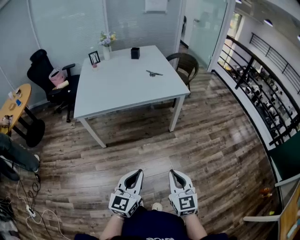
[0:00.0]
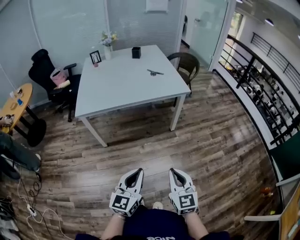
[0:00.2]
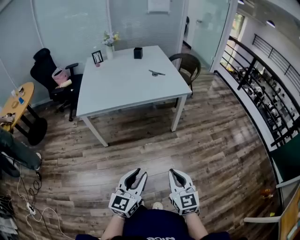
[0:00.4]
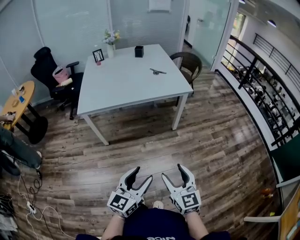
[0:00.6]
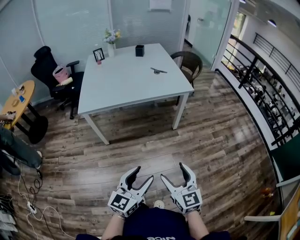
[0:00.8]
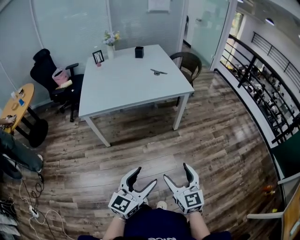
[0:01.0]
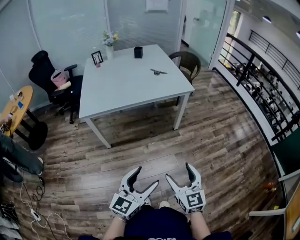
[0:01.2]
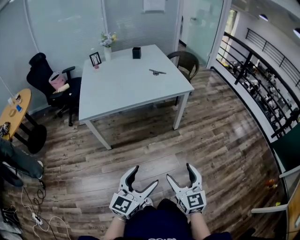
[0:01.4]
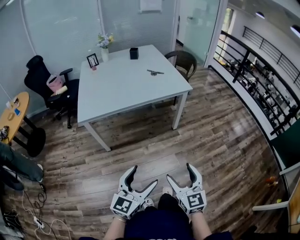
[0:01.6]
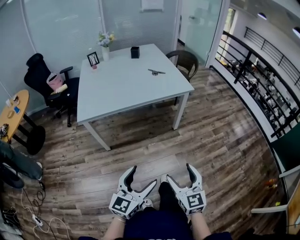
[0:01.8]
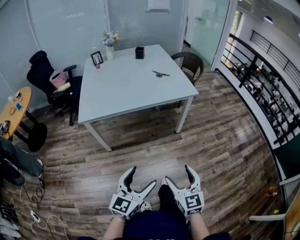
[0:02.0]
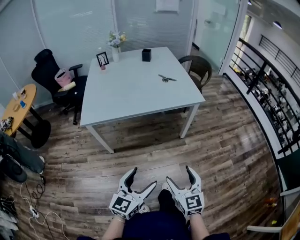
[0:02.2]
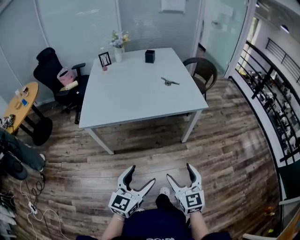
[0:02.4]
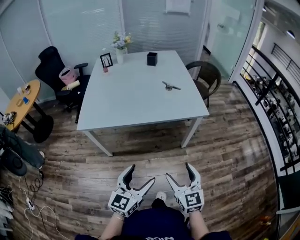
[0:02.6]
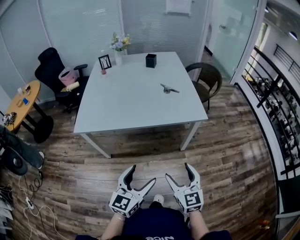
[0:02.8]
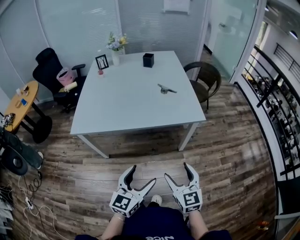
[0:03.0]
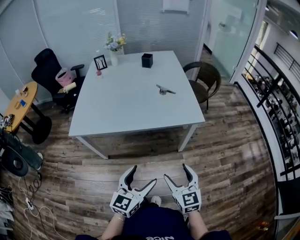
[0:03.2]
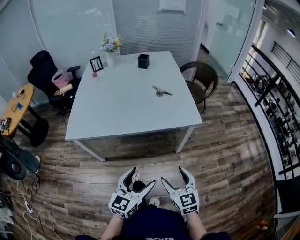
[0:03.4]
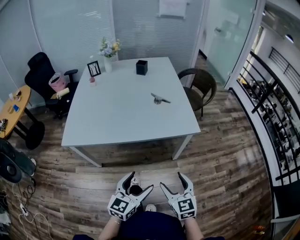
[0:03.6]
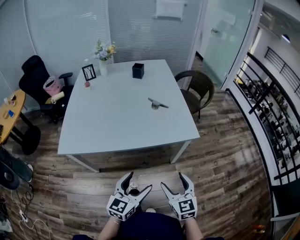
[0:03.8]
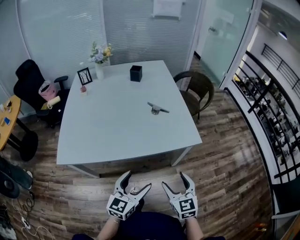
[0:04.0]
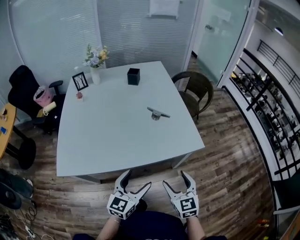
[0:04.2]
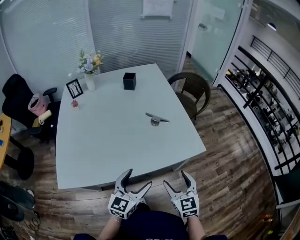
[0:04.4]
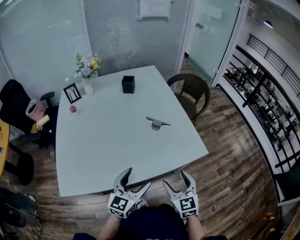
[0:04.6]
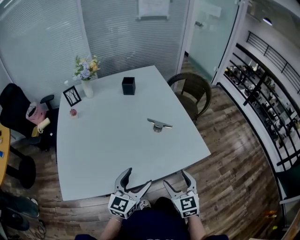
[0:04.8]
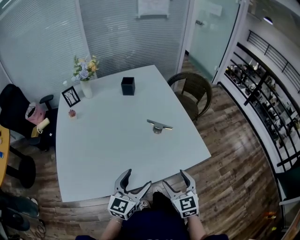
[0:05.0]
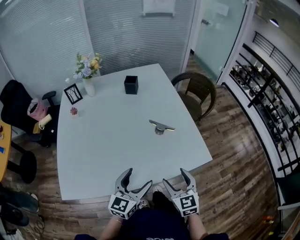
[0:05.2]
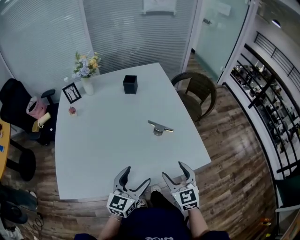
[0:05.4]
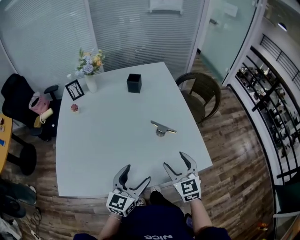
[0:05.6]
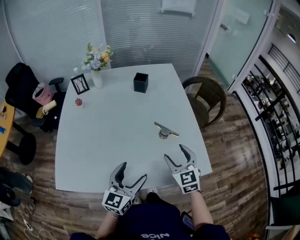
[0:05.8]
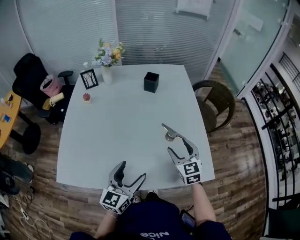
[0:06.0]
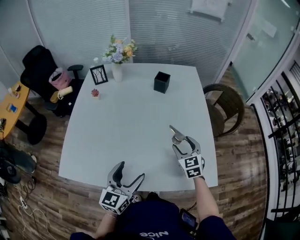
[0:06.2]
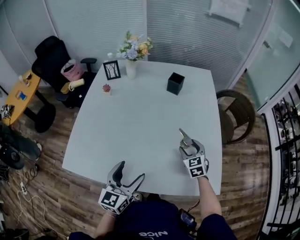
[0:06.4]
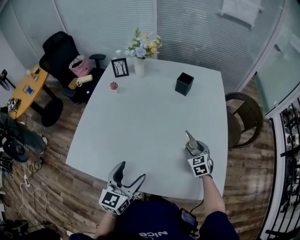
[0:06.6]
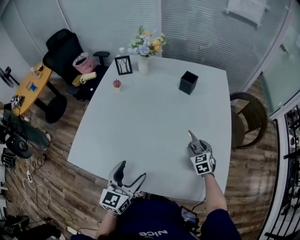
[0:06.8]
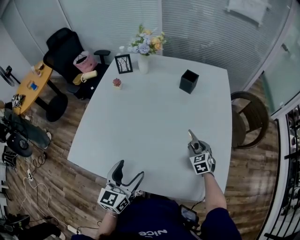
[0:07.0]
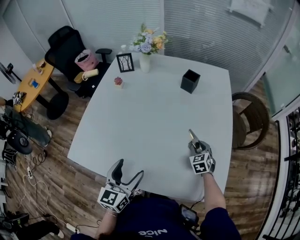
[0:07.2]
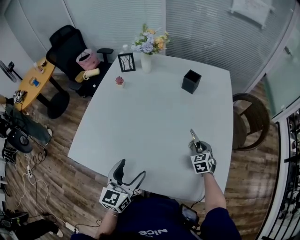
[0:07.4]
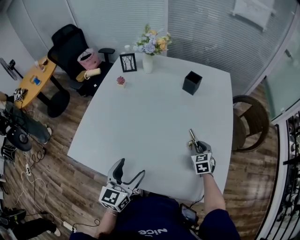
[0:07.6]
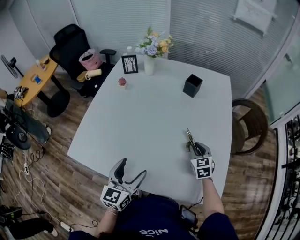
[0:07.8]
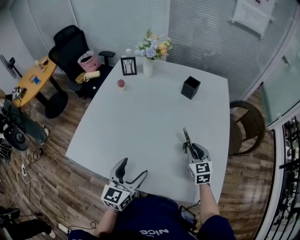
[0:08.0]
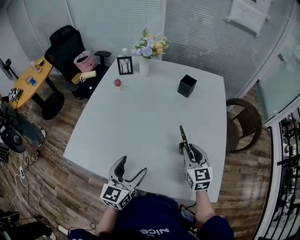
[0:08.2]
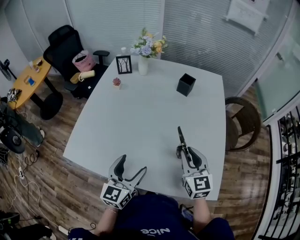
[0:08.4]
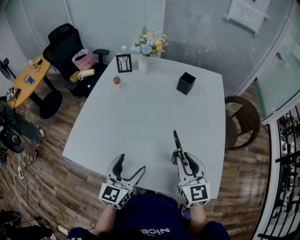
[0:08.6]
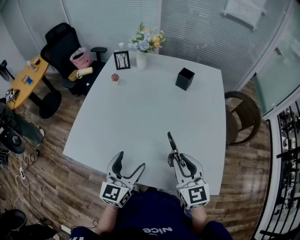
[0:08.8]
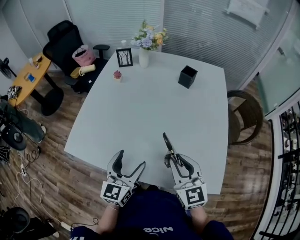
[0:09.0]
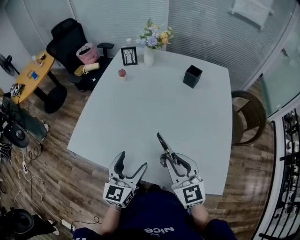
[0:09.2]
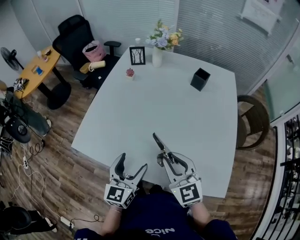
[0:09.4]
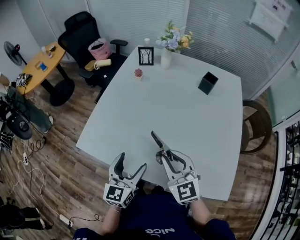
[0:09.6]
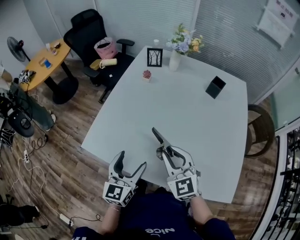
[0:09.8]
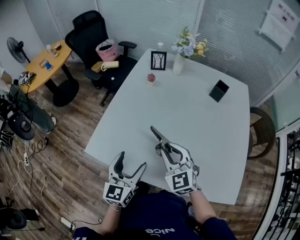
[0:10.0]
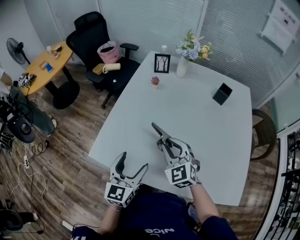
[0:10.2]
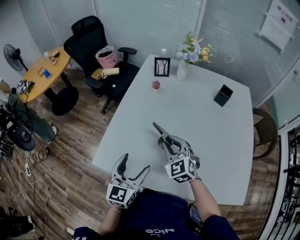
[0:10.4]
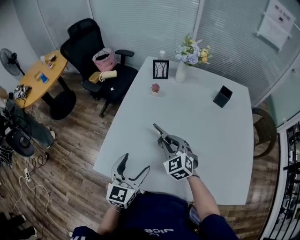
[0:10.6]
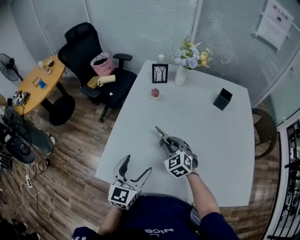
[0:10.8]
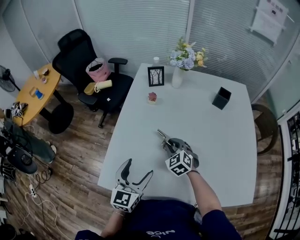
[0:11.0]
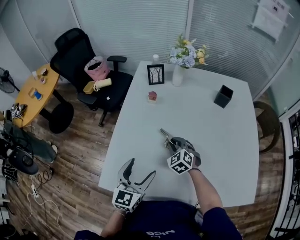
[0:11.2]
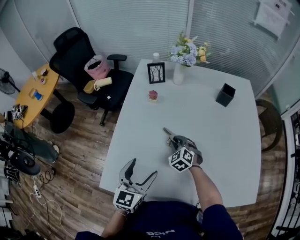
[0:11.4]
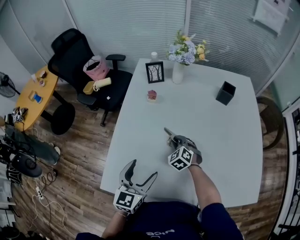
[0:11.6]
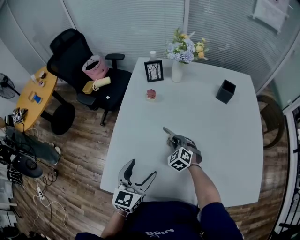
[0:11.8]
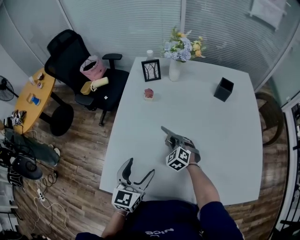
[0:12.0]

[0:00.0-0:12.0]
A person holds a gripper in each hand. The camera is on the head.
0:00.0 to 0:01.6: The right gripper opens; the left gripper opens its fingers.
0:01.6 to 0:03.0: The grippers both shift forward by some 25 cm.
0:03.0 to 0:04.4: Both grippers move forward, approximately 25 cm.
0:04.4 to 0:06.0: The right gripper is displaced forward by some 25 cm. Meanwhile the left gripper travels forward and to the left by roughly 15 cm.
0:06.0 to 0:07.6: The right gripper is displaced downward and forward by approximately 20 cm, and closes its fingers. Meanwhile the left gripper is displaced to the left by some 5 cm, and changes its angle by roughly 20 degrees.
0:07.6 to 0:09.0: The right gripper moves upward, backward and to the left, some 30 cm, and rotates roughly 30 degrees.
0:09.0 to 0:10.4: The right gripper is displaced to the left and forward by roughly 30 cm, and swivels about 30 degrees, while the left gripper is displaced to the left by about 20 cm.
0:10.4 to 0:12.0: The right gripper travels downward and forward by about 20 cm, and rotates some 20 degrees. Meanwhile the left gripper is displaced forward by approximately 10 cm.

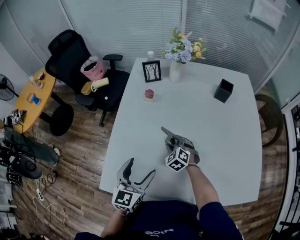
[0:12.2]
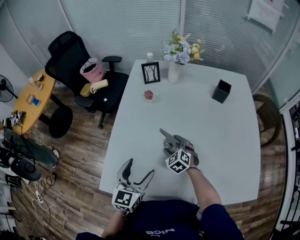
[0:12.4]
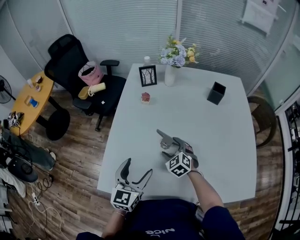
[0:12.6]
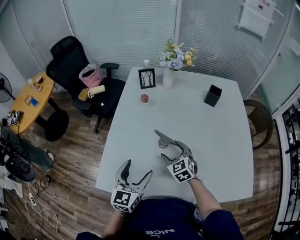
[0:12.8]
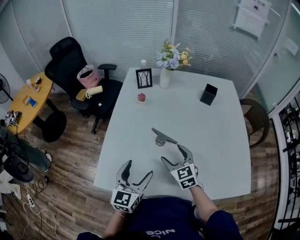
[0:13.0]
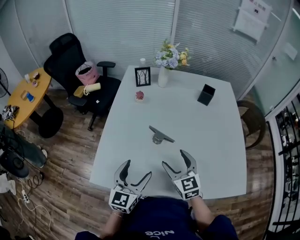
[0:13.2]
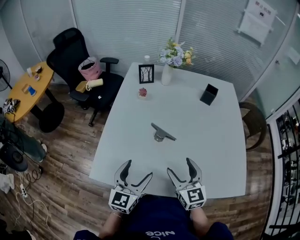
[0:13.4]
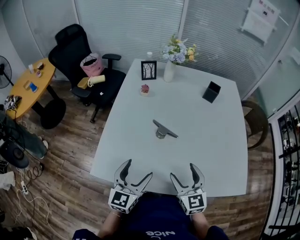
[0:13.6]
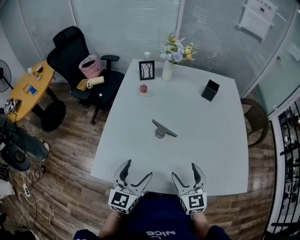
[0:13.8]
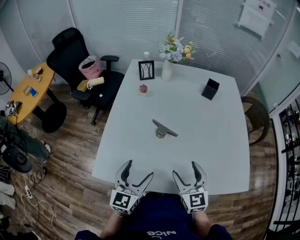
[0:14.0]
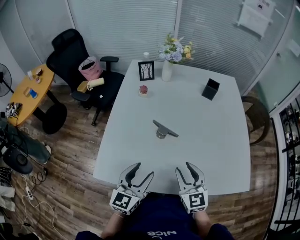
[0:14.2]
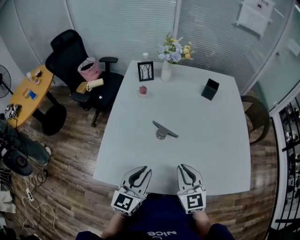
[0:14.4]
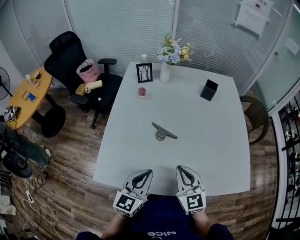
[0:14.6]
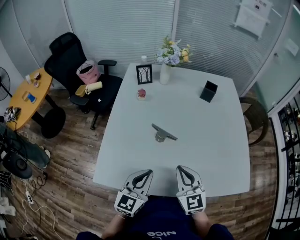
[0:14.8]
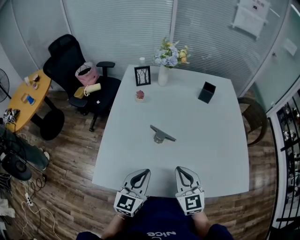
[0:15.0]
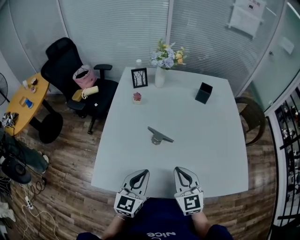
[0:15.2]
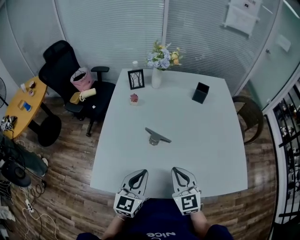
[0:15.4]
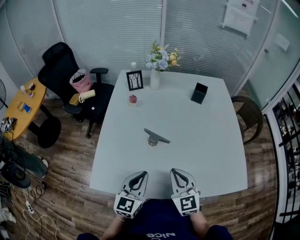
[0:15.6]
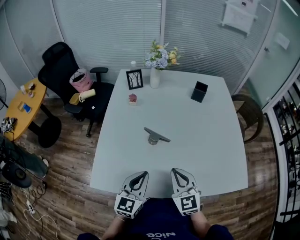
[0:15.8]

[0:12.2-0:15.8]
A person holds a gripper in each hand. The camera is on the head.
0:12.2 to 0:14.0: The right gripper moves backward and upward, approximately 30 cm, tips its fingers upward by about 30 degrees, and opens up. The left gripper travels backward by about 10 cm.
0:14.0 to 0:15.8: The right gripper closes its fingers. The left gripper closes.

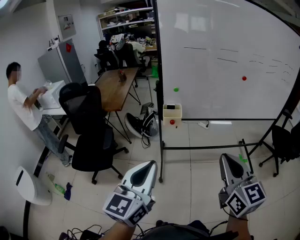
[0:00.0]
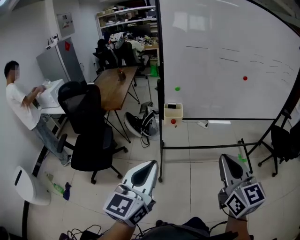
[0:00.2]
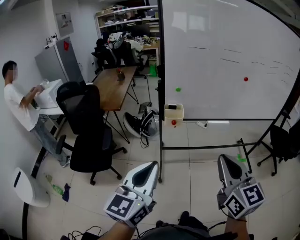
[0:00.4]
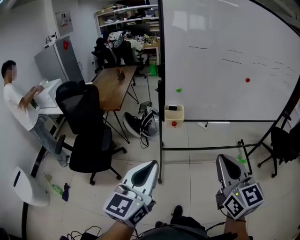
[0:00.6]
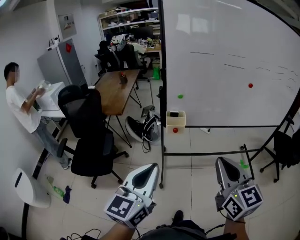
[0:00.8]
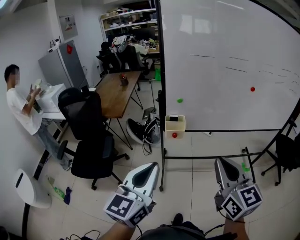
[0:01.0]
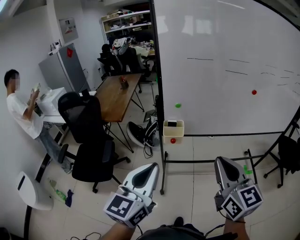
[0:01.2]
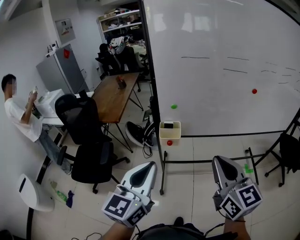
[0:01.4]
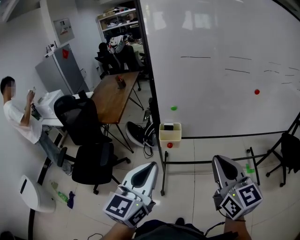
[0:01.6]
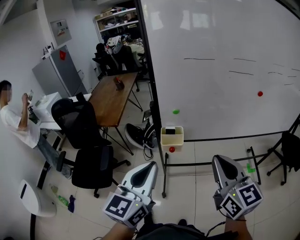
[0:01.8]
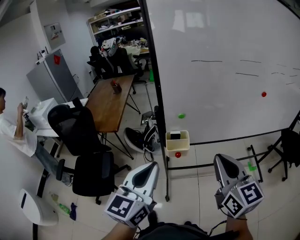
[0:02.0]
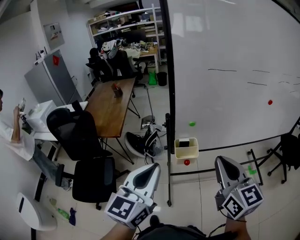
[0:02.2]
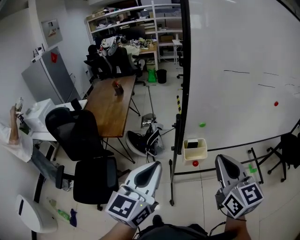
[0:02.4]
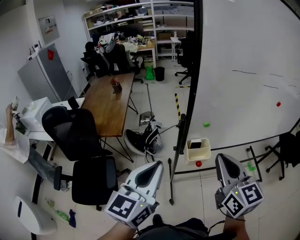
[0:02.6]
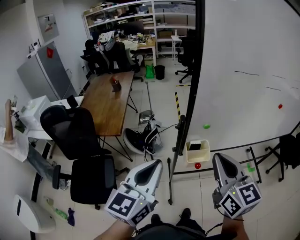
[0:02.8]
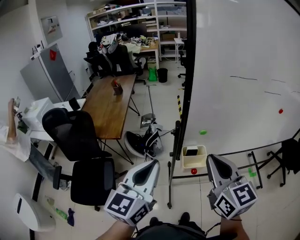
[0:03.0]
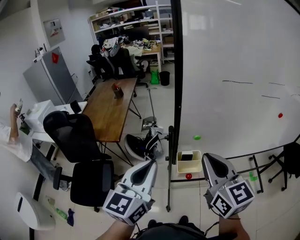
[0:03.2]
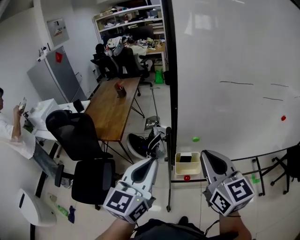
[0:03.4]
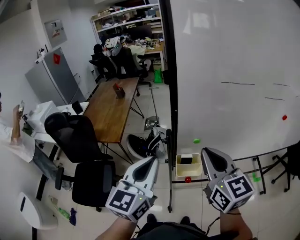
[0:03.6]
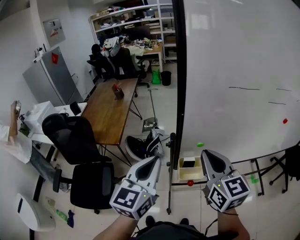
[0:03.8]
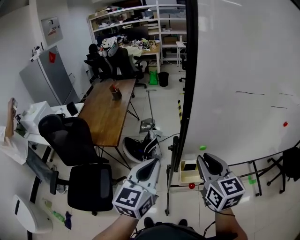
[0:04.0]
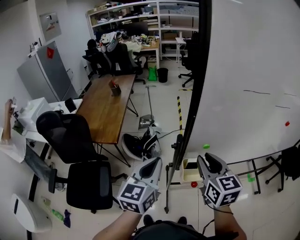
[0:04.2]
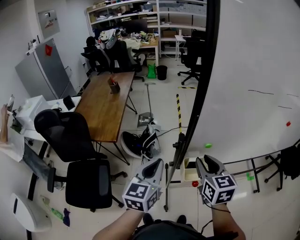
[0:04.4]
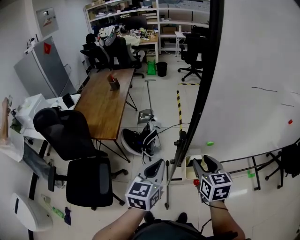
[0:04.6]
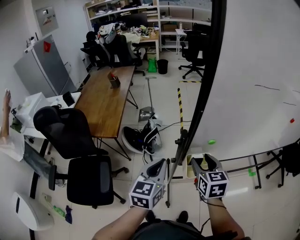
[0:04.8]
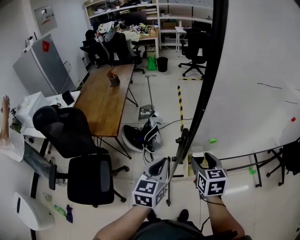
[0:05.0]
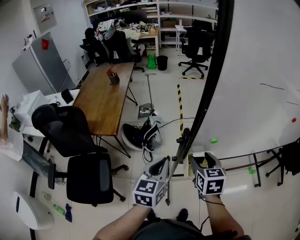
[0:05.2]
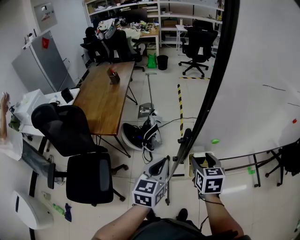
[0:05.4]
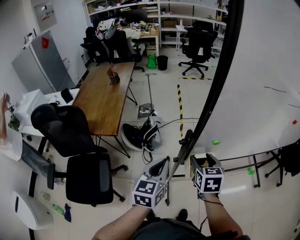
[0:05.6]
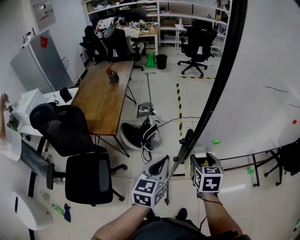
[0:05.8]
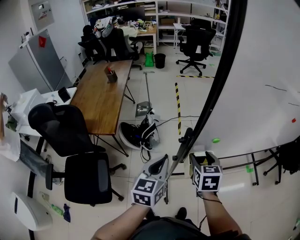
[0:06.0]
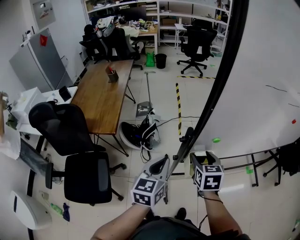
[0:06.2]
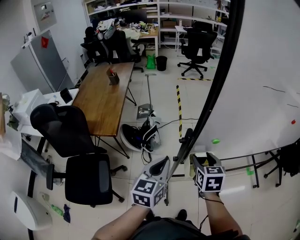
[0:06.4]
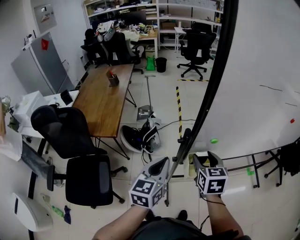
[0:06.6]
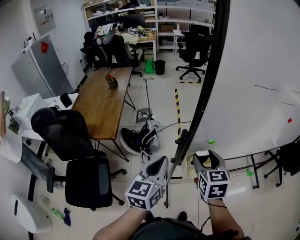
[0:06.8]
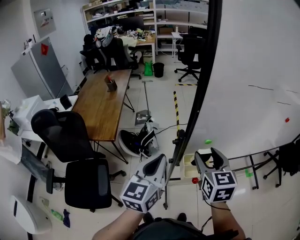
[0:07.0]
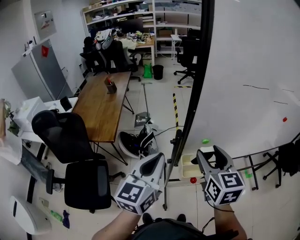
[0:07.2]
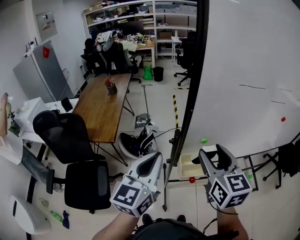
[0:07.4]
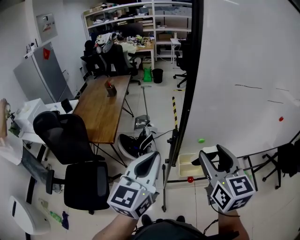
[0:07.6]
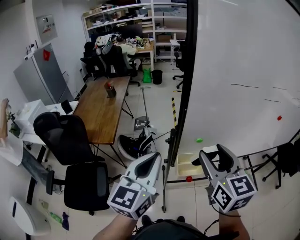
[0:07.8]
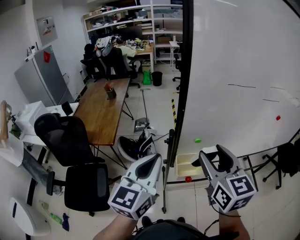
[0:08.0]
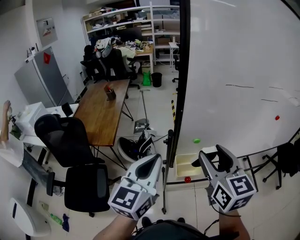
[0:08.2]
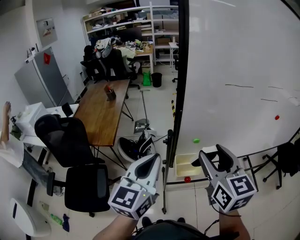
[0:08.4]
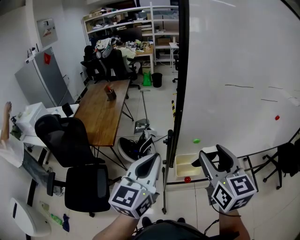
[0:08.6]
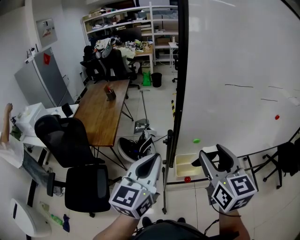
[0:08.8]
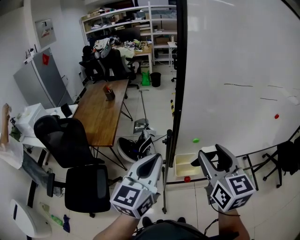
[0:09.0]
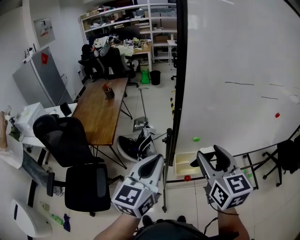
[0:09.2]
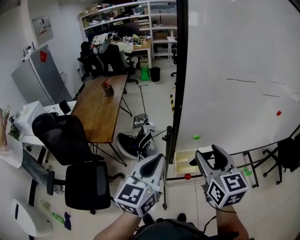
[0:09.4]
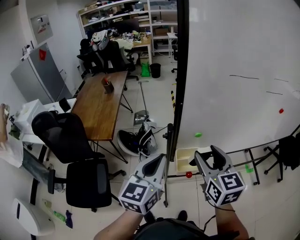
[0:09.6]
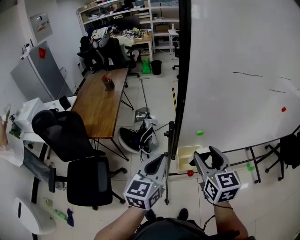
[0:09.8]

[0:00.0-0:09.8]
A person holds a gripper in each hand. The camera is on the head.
0:00.0 to 0:01.4: Both grippers travel together forward, some 20 cm.
0:01.4 to 0:02.8: The right gripper goes some 35 cm to the left and forward. The left gripper moves forward and to the left, some 35 cm.
0:02.8 to 0:04.2: The right gripper goes some 20 cm forward and downward, and opens up. The left gripper is displaced forward by approximately 15 cm.
0:04.2 to 0:05.6: Both grippers travel together downward, some 15 cm. The right gripper changes its angle by about 20 degrees, and opens its fingers.
0:05.6 to 0:07.0: Both grippers travel together upward, approximately 10 cm.
0:07.0 to 0:08.4: Both grippers travel together upward and backward, roughly 15 cm.
0:08.4 to 0:09.8: The grippers both shift downward by approximately 10 cm.
